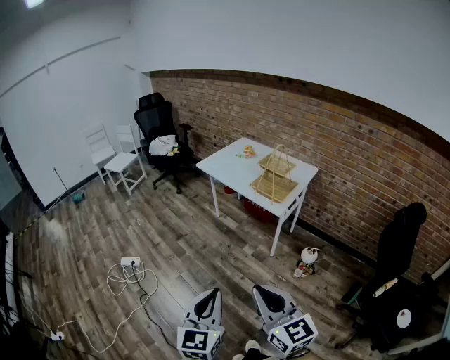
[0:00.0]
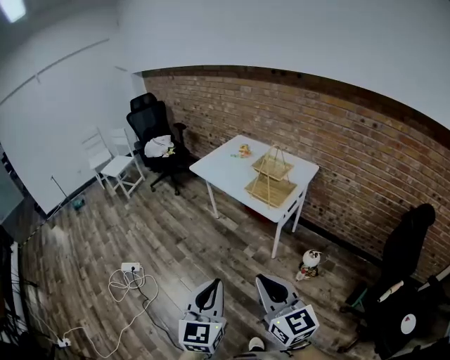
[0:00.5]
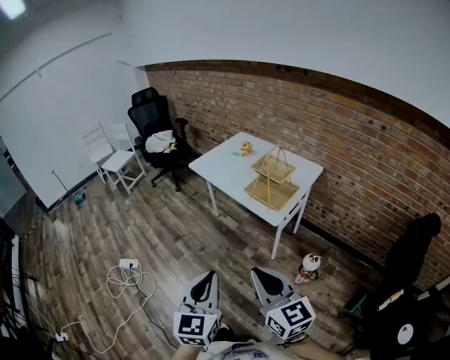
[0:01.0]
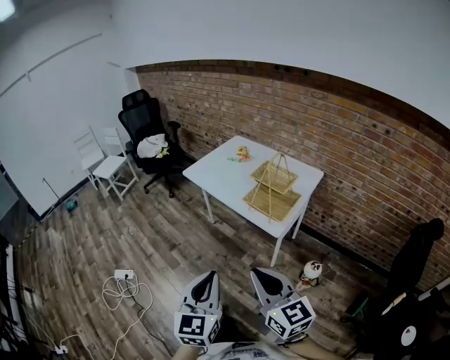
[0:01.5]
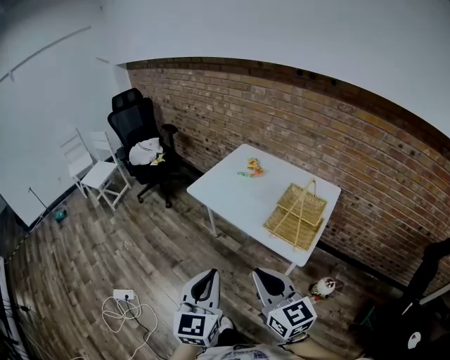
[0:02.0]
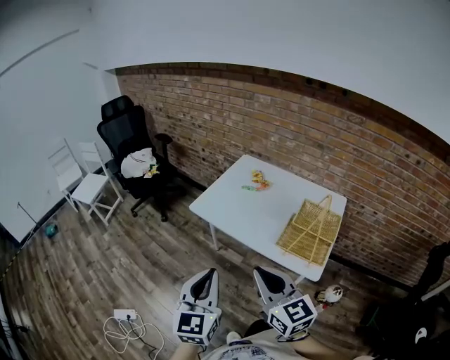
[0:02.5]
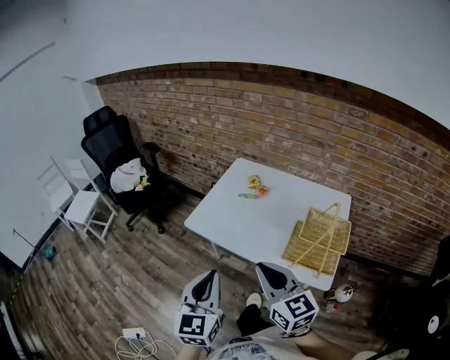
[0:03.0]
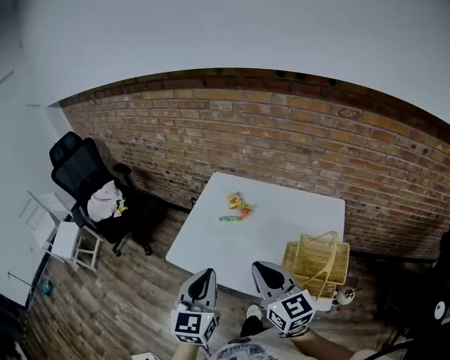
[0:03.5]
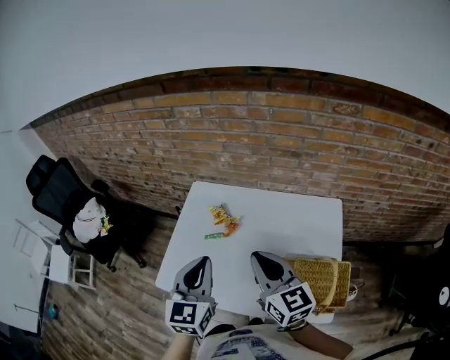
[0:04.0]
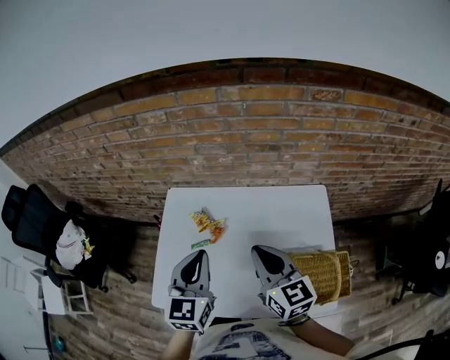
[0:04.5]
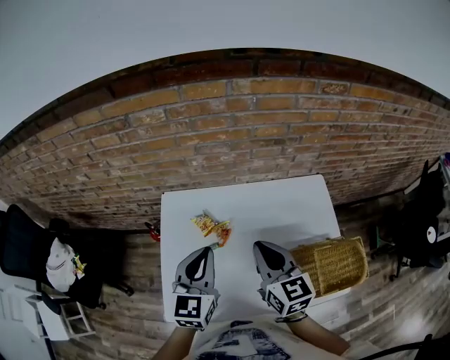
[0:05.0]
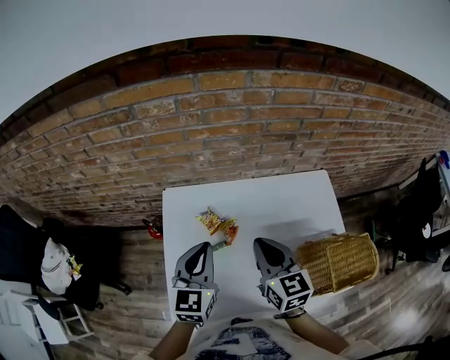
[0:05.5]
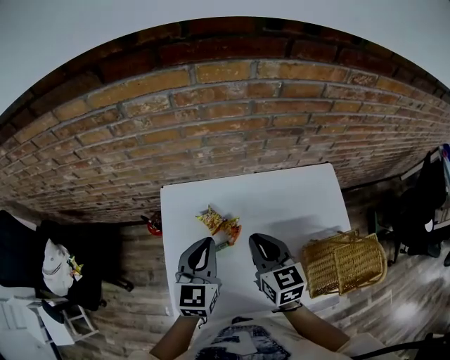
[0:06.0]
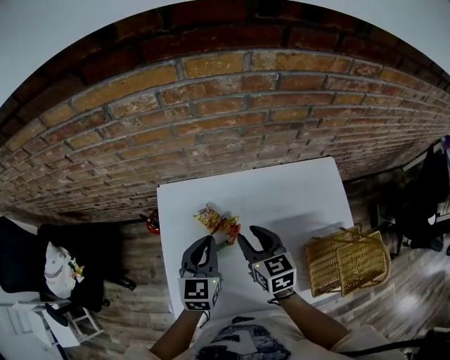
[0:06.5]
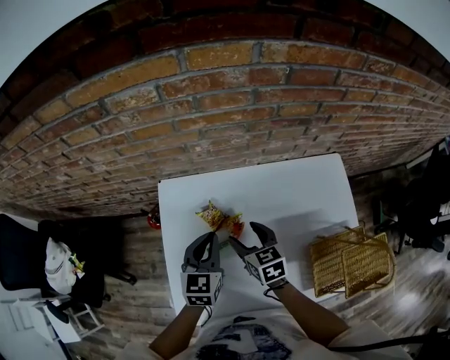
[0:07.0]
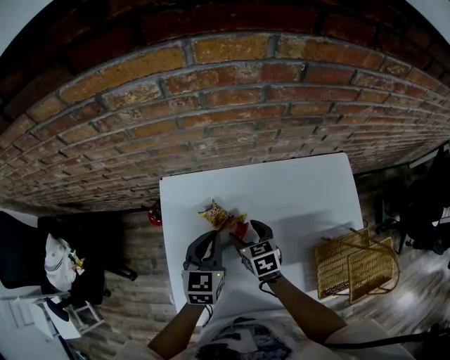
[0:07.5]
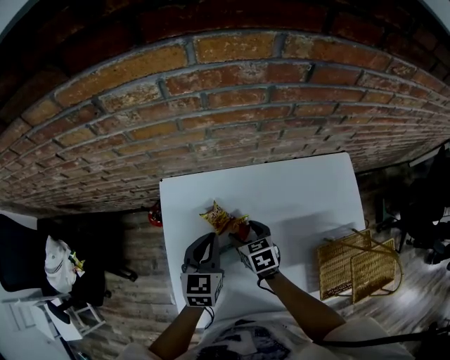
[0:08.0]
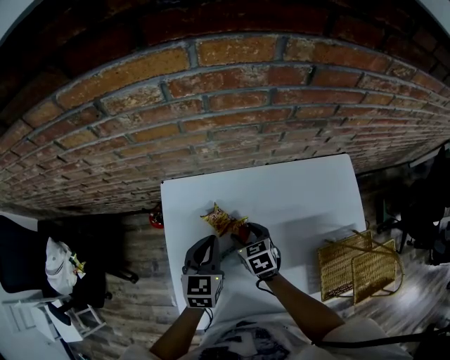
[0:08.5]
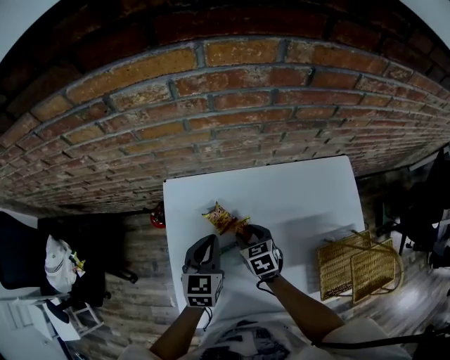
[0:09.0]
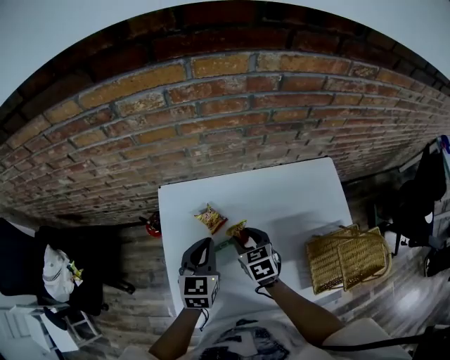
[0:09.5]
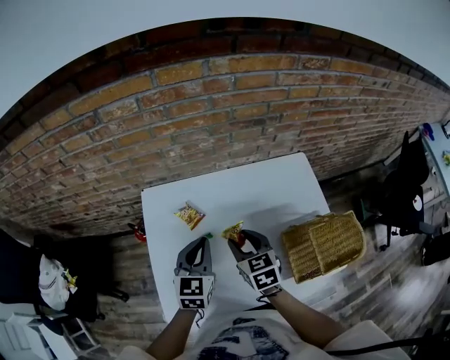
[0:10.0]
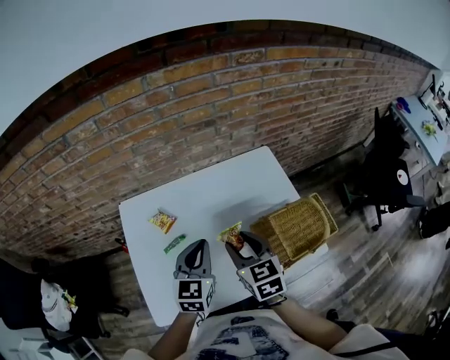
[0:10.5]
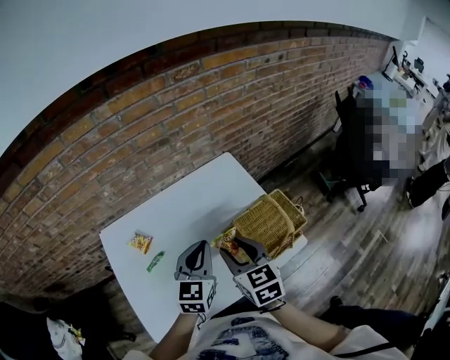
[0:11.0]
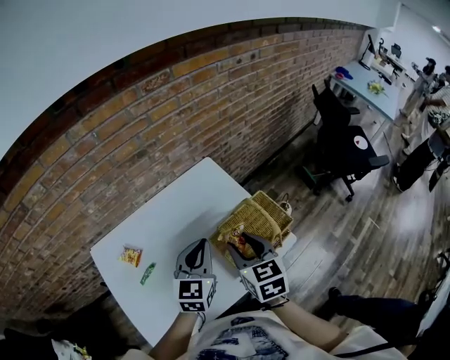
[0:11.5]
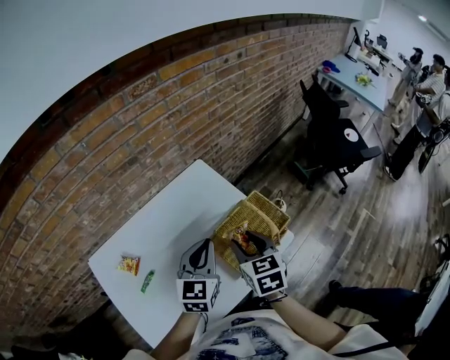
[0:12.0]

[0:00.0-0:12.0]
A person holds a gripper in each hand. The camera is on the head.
0.0 to 2.0 s: The two grippers travel together, forward, about 50 cm.
2.0 to 4.0 s: The pair of grippers is taken forward, some 50 cm. The right gripper swivels some 30 degrees. The left gripper turns by approximately 20 degrees.
4.0 to 6.0 s: Both grippers travel together forward, downward and to the left, about 20 cm. The right gripper turns by roughly 30 degrees; the left gripper rotates about 20 degrees.
6.0 to 8.0 s: The right gripper travels downward by about 20 cm, changes its angle by roughly 30 degrees, and opens its fingers; the left gripper goes some 10 cm downward.
8.0 to 10.0 s: The left gripper heads backward, upward and to the right, covering roughly 15 cm. The right gripper shifts some 20 cm upward, backward and to the right.
10.0 to 12.0 s: The right gripper ends up some 30 cm from where it was, and changes its angle by about 30 degrees; the left gripper moves about 30 cm, and changes its angle by approximately 30 degrees.

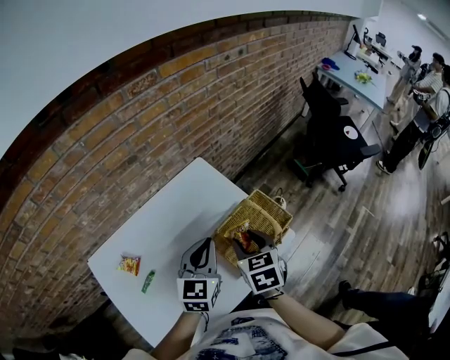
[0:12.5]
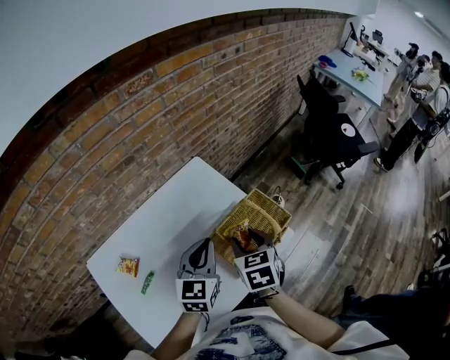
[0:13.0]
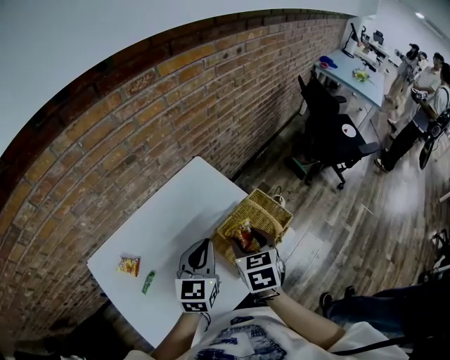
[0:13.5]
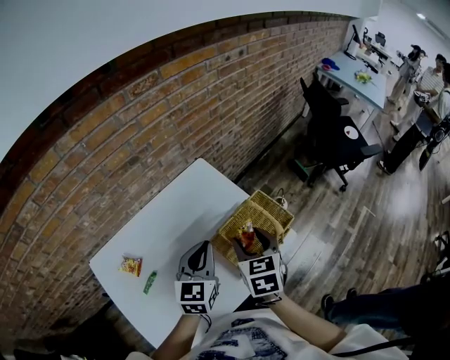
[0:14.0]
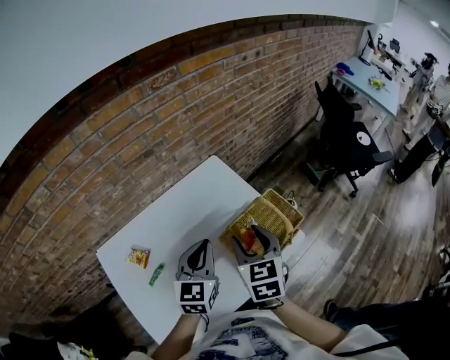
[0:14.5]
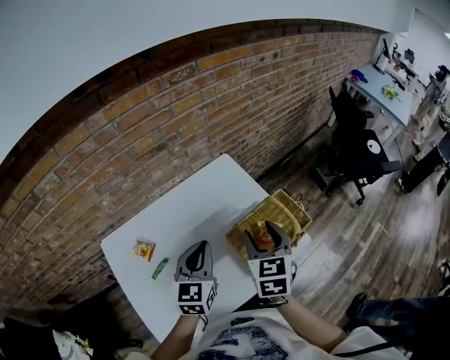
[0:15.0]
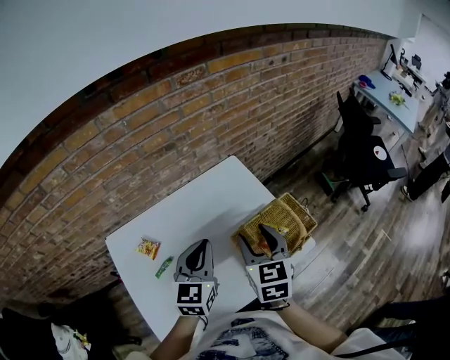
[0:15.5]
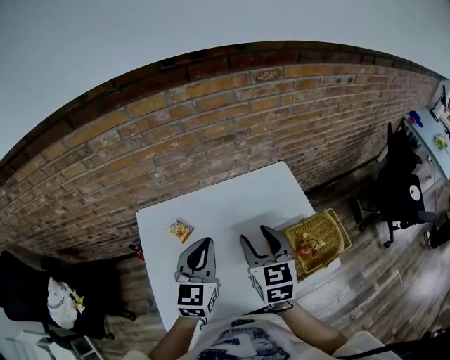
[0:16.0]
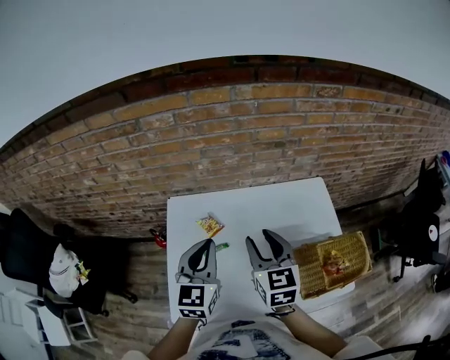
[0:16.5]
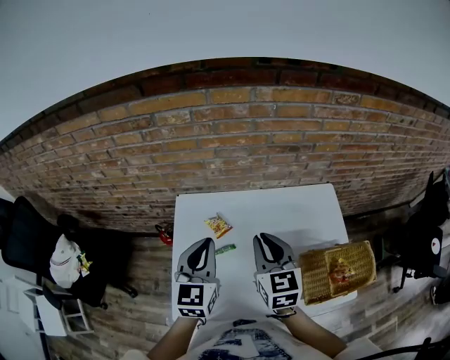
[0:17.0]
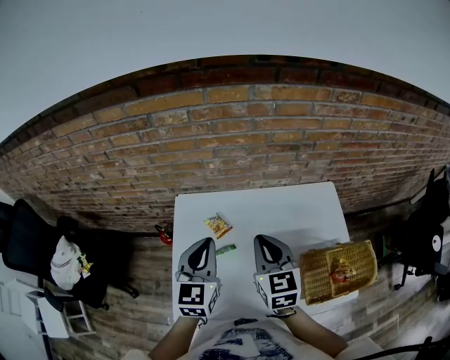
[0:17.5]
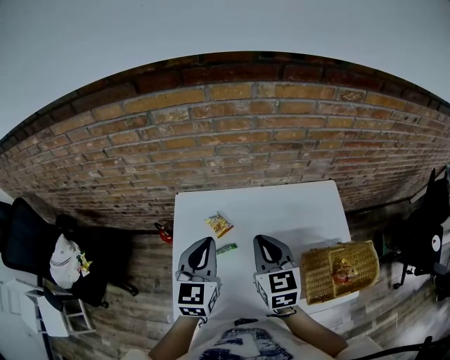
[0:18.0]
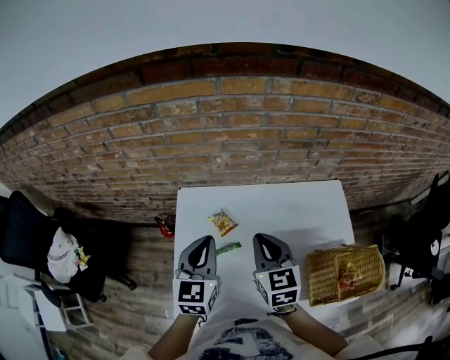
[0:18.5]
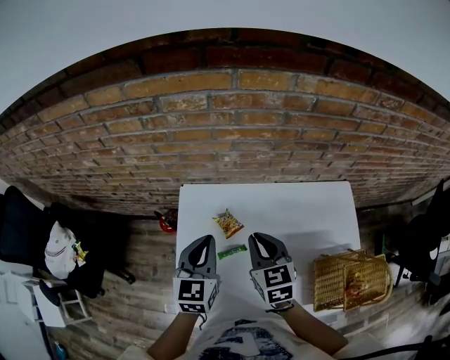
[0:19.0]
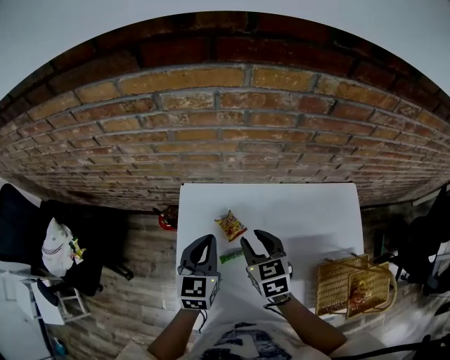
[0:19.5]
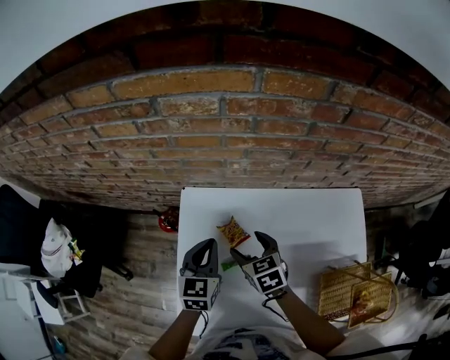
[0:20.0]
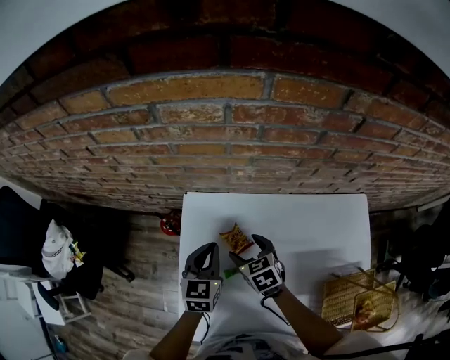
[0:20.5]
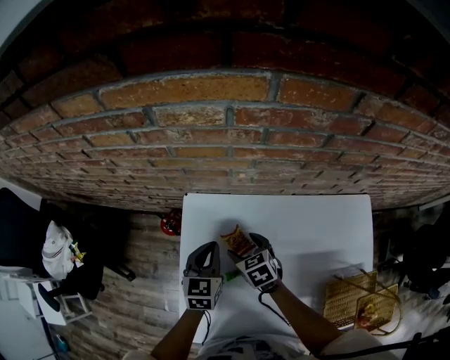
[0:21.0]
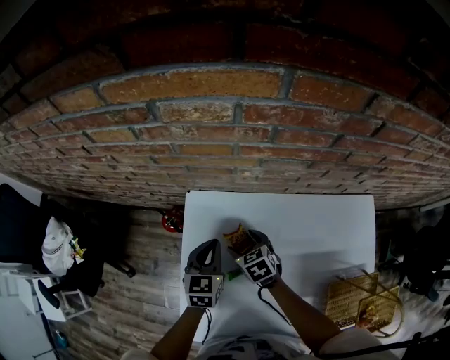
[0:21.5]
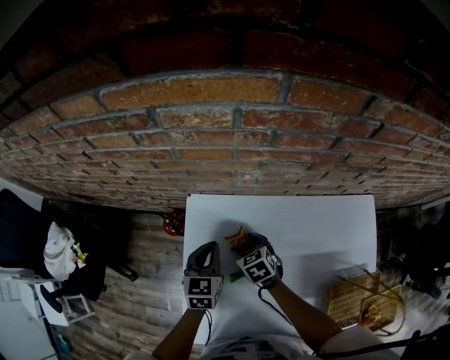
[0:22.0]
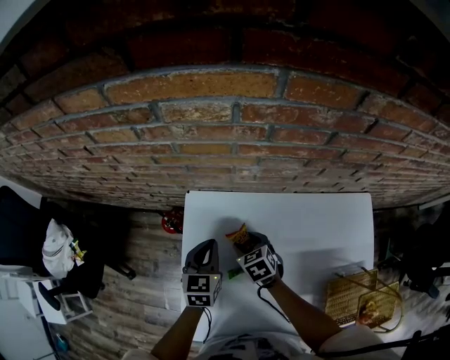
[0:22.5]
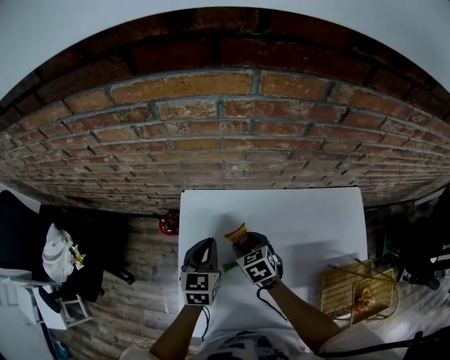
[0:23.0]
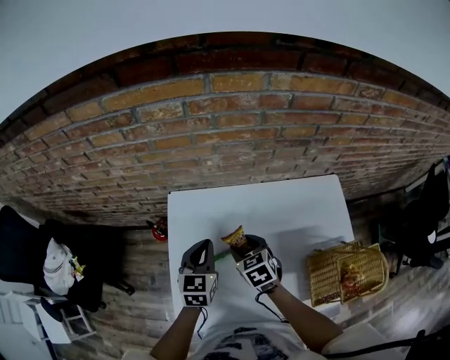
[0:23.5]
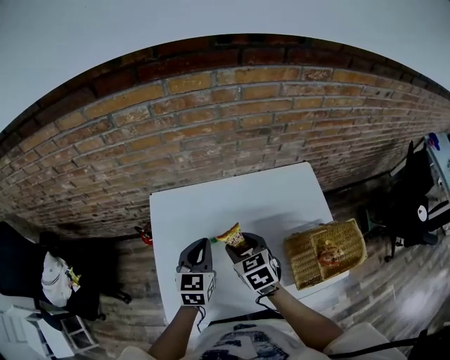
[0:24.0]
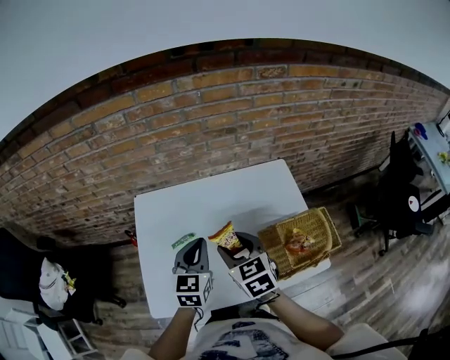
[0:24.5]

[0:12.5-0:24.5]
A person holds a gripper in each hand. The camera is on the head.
12.5 to 14.5 s: The right gripper travels upward by some 5 cm.
14.5 to 16.5 s: The right gripper ends up some 25 cm from where it was, and turns by about 30 degrees, while the left gripper changes place by roughly 25 cm, and swivels approximately 30 degrees.
16.5 to 18.5 s: The grippers both shift to the left by about 5 cm. The right gripper closes.
18.5 to 20.5 s: The left gripper moves downward and forward, roughly 20 cm. Meanwhile the right gripper shifts approximately 25 cm downward, forward and to the left, turns by some 30 degrees, and opens.
20.5 to 22.5 s: The right gripper shifts by some 5 cm.
22.5 to 24.5 s: The left gripper is displaced backward, to the right and upward by roughly 30 cm. Meanwhile the right gripper moves upward, backward and to the right, roughly 35 cm, and changes its angle by about 30 degrees.

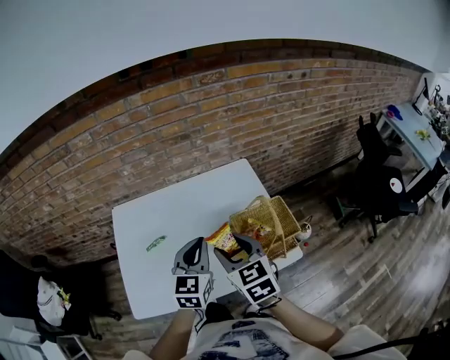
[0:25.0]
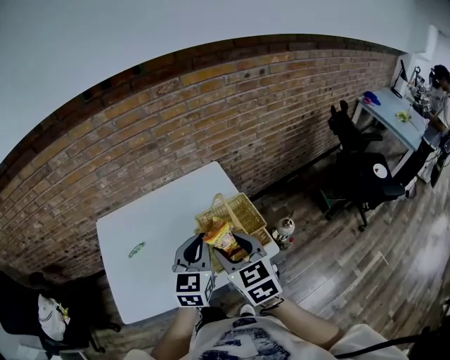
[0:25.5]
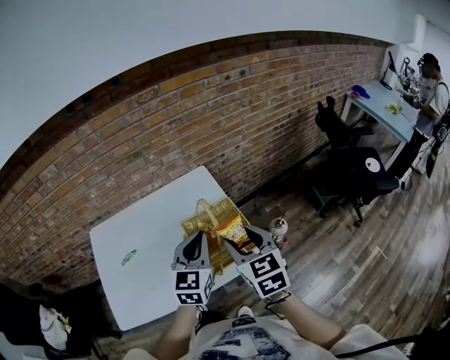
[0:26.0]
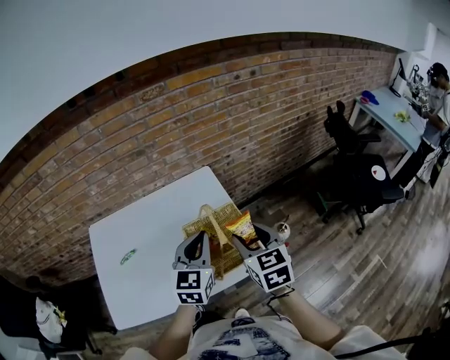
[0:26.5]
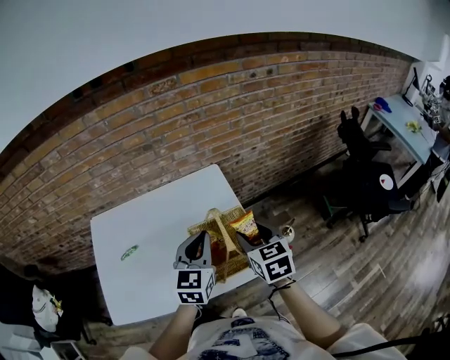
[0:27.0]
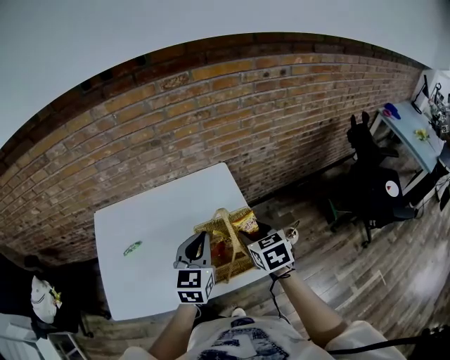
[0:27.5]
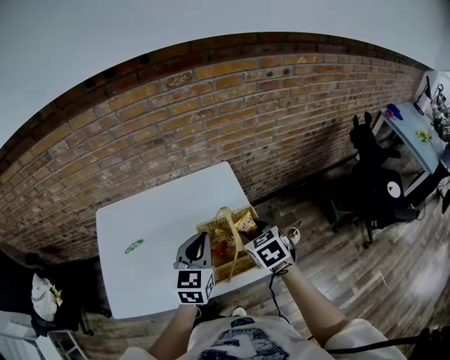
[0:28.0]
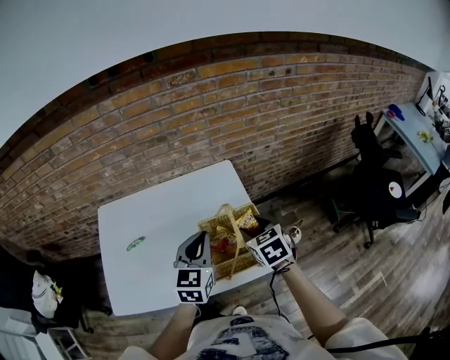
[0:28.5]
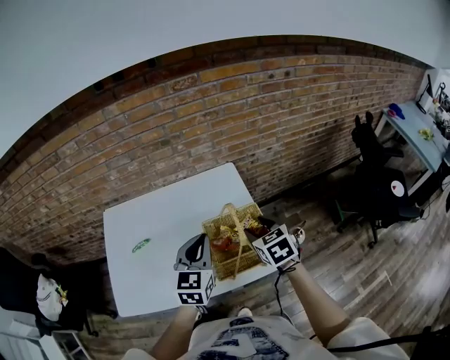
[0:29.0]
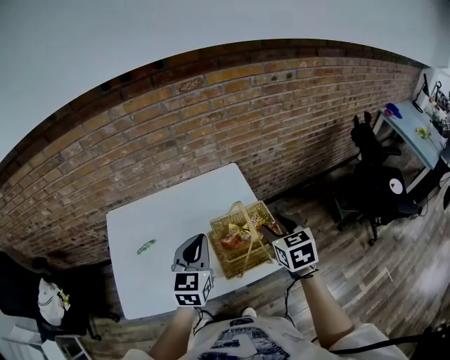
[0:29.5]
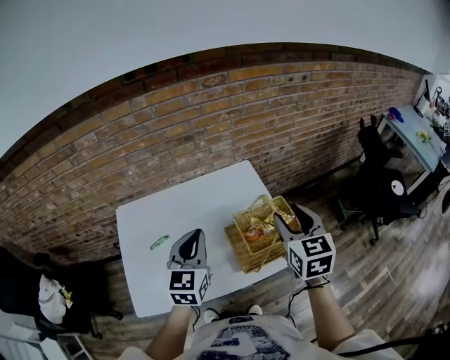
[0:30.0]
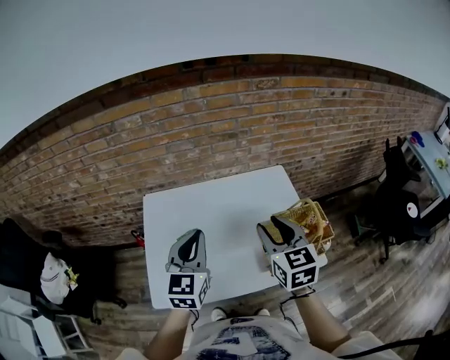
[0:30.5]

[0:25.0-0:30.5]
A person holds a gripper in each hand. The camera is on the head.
25.0 to 27.0 s: The two grippers go approximately 20 cm to the right.
27.0 to 28.5 s: The right gripper moves roughly 5 cm.
28.5 to 30.5 s: The right gripper moves to the left and upward, roughly 25 cm, and turns by roughly 20 degrees. Meanwhile the left gripper travels to the left by roughly 25 cm.
